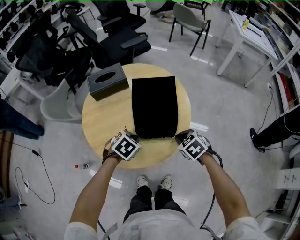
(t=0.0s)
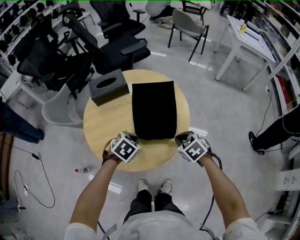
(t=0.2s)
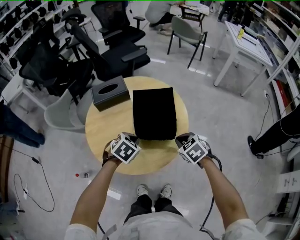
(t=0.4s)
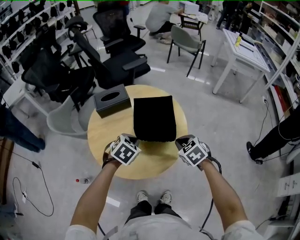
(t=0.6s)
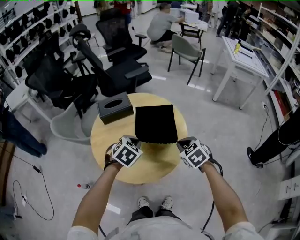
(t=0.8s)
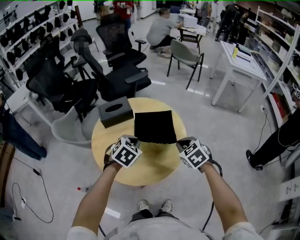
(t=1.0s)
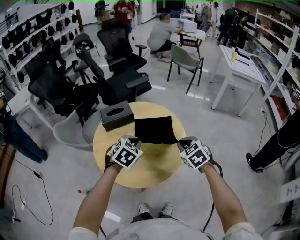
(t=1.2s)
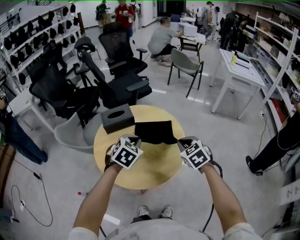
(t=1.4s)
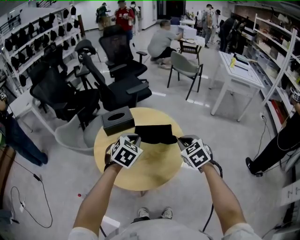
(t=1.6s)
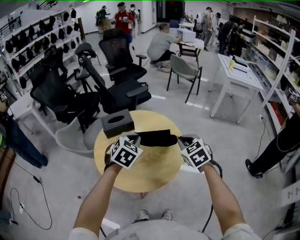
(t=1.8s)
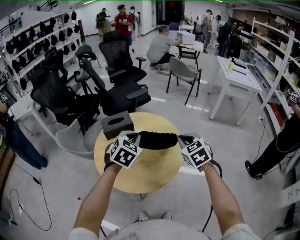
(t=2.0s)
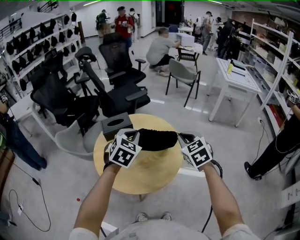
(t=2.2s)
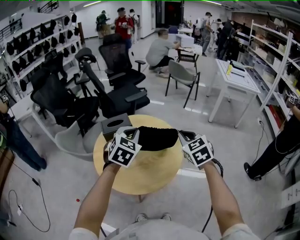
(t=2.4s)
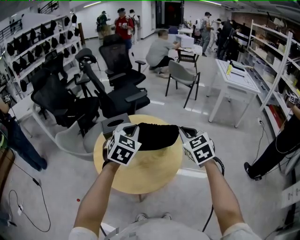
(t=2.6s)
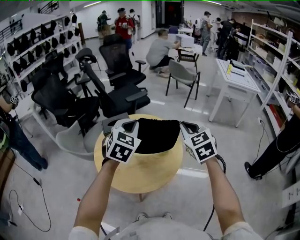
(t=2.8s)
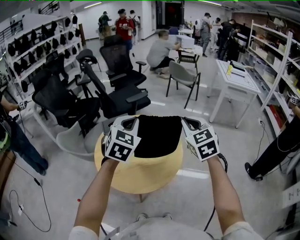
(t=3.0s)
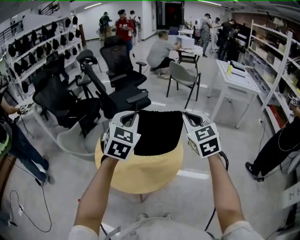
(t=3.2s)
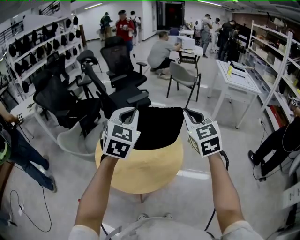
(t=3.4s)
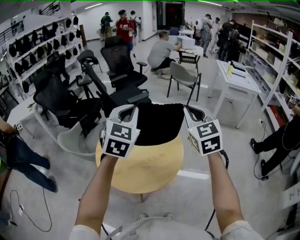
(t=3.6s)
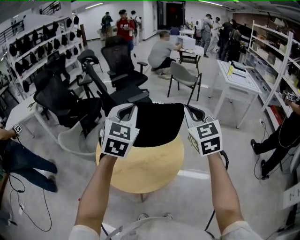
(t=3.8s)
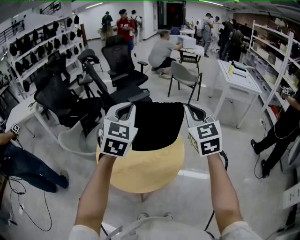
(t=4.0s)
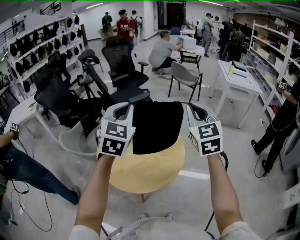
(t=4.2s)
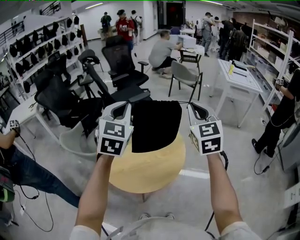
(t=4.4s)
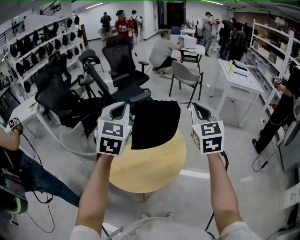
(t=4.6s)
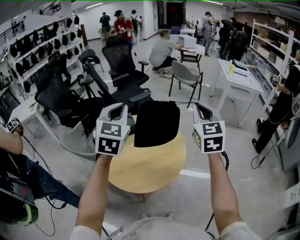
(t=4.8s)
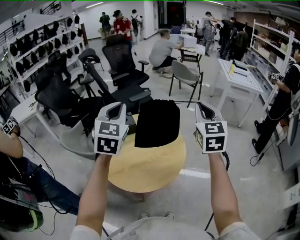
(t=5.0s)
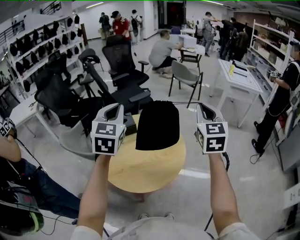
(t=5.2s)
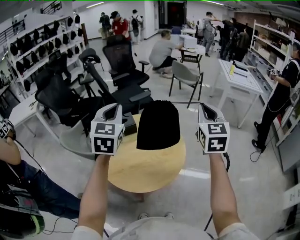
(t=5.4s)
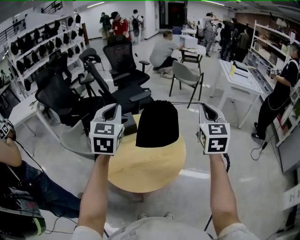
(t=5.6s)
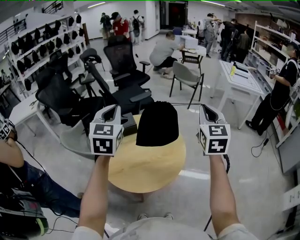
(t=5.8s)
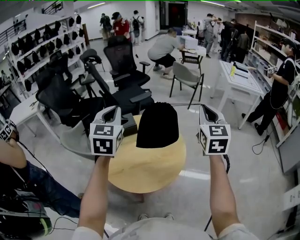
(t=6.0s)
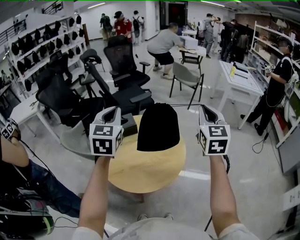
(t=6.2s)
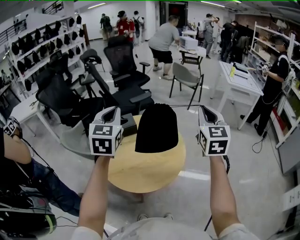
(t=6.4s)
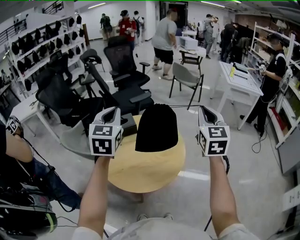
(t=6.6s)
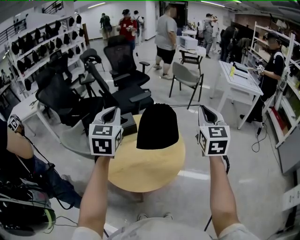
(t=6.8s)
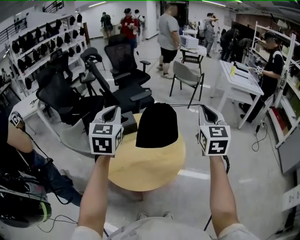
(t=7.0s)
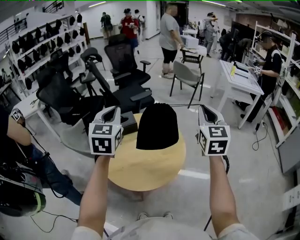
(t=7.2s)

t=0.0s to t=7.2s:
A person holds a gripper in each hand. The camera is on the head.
t=0.0s to t=1.4s: The grippers both shift upward by about 20 cm. The left gripper turns by approximately 30 degrees. The right gripper rotates about 20 degrees.
t=1.4s to t=2.8s: Both grippers move upward, approximately 15 cm. The left gripper swivels some 20 degrees. Meanwhile the right gripper changes its angle by roughly 20 degrees.
t=2.8s to t=4.4s: Both grippers travel together upward, some 10 cm.
t=4.4s to t=5.8s: The left gripper goes some 5 cm to the left.
t=5.8s to t=7.2s: There are only small adjustments of the grippers.

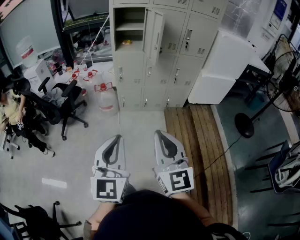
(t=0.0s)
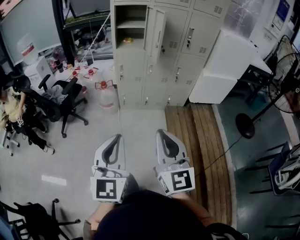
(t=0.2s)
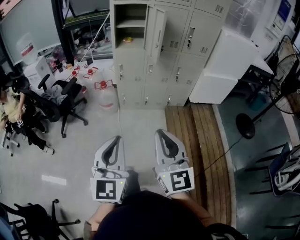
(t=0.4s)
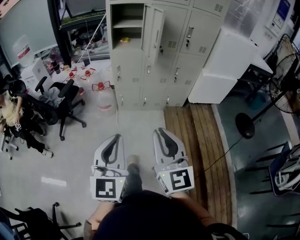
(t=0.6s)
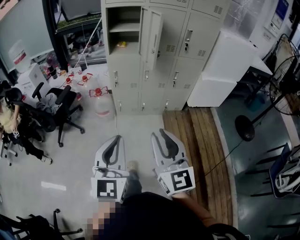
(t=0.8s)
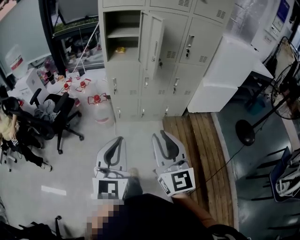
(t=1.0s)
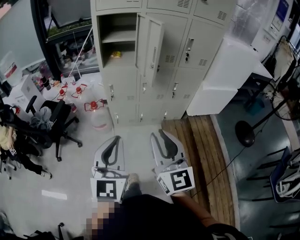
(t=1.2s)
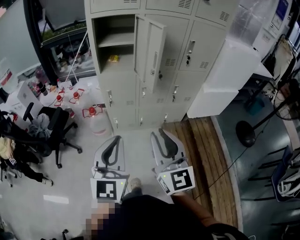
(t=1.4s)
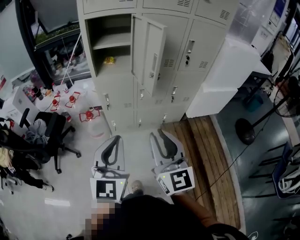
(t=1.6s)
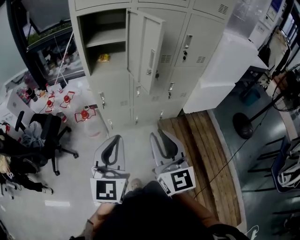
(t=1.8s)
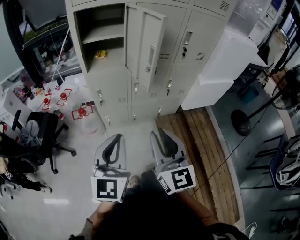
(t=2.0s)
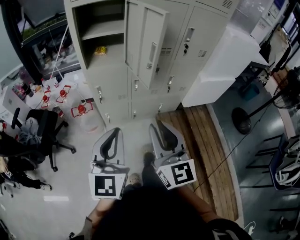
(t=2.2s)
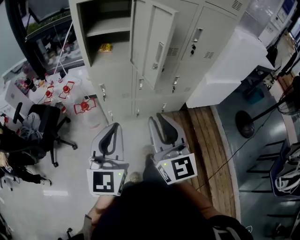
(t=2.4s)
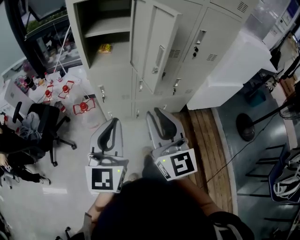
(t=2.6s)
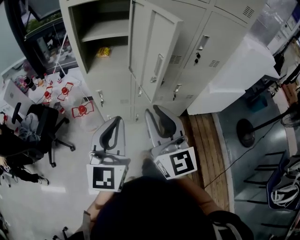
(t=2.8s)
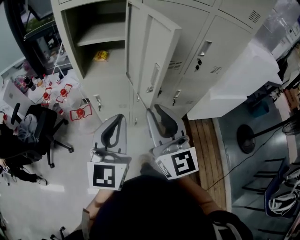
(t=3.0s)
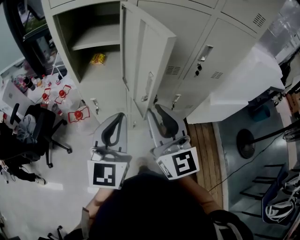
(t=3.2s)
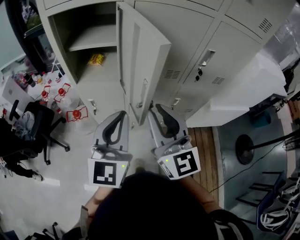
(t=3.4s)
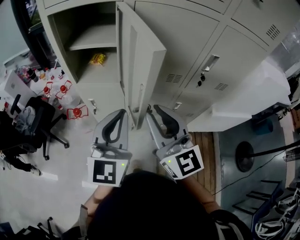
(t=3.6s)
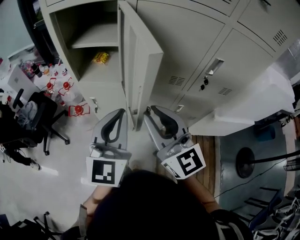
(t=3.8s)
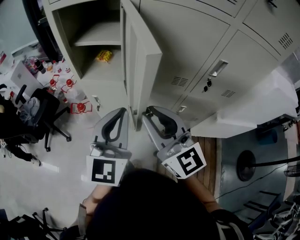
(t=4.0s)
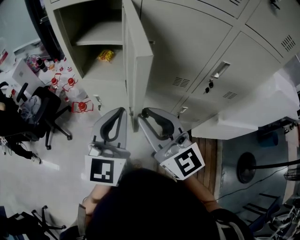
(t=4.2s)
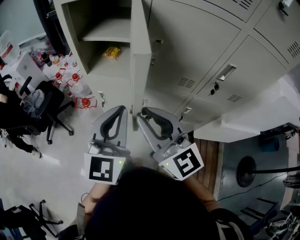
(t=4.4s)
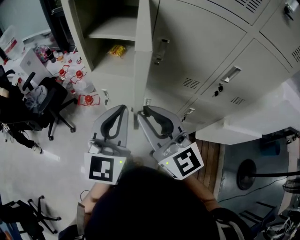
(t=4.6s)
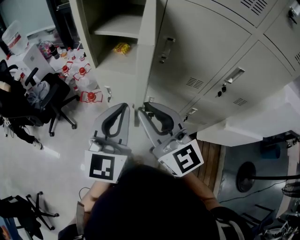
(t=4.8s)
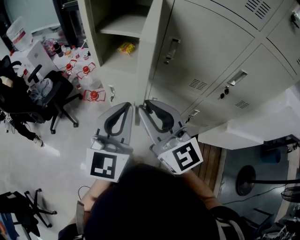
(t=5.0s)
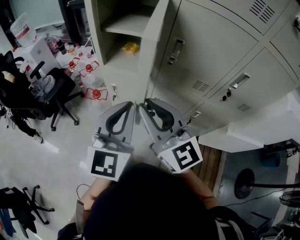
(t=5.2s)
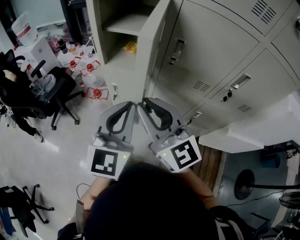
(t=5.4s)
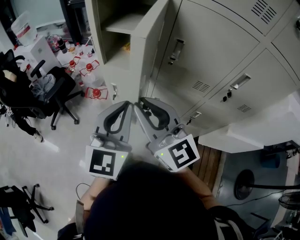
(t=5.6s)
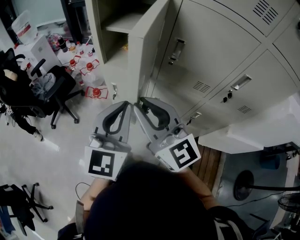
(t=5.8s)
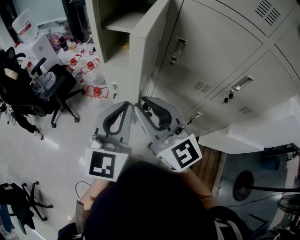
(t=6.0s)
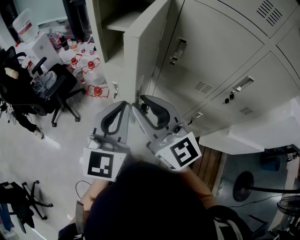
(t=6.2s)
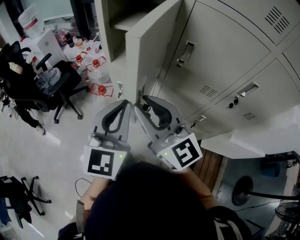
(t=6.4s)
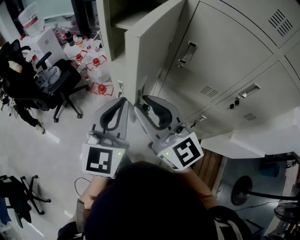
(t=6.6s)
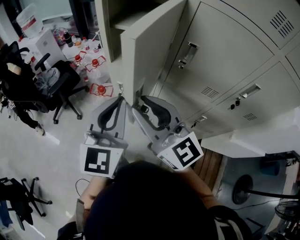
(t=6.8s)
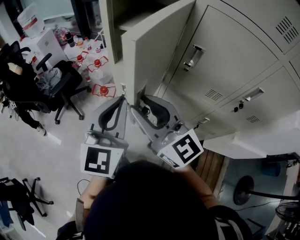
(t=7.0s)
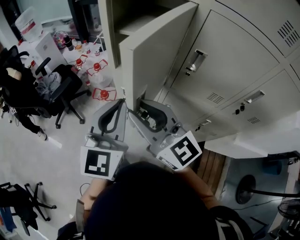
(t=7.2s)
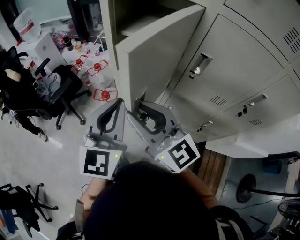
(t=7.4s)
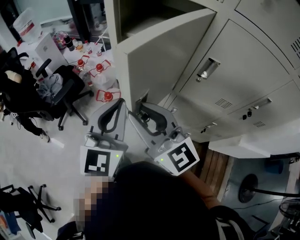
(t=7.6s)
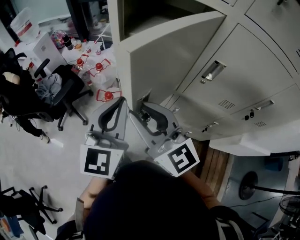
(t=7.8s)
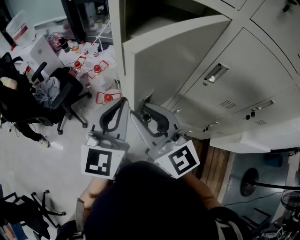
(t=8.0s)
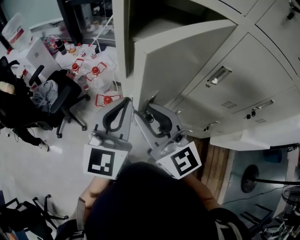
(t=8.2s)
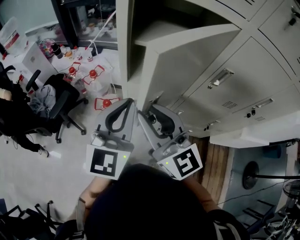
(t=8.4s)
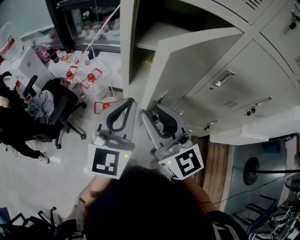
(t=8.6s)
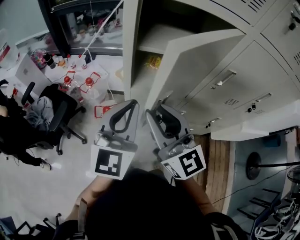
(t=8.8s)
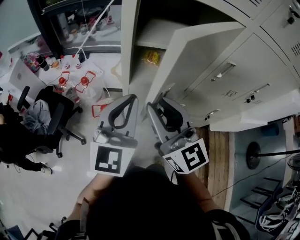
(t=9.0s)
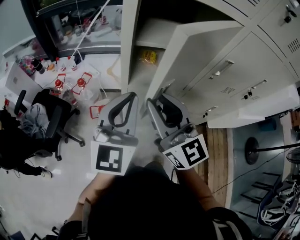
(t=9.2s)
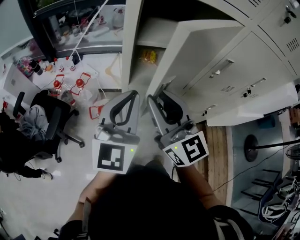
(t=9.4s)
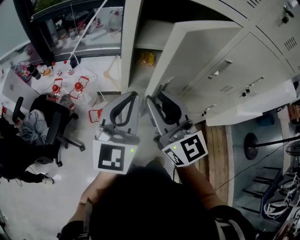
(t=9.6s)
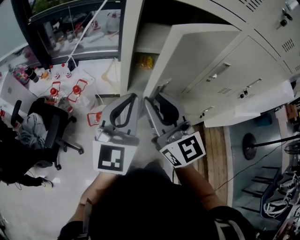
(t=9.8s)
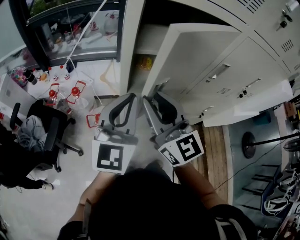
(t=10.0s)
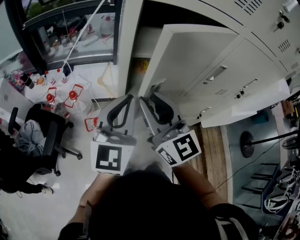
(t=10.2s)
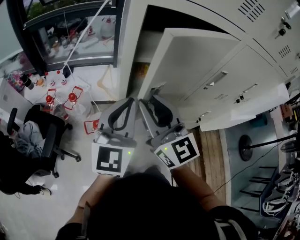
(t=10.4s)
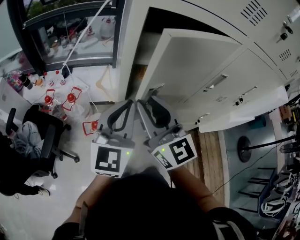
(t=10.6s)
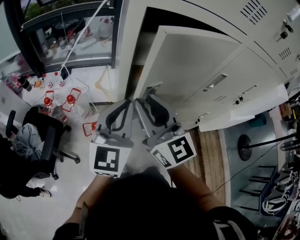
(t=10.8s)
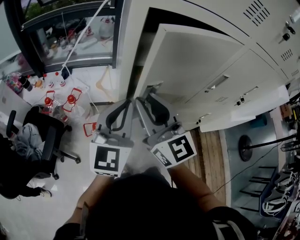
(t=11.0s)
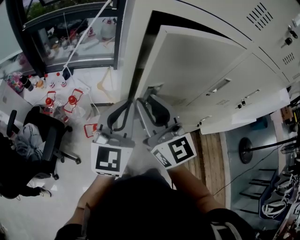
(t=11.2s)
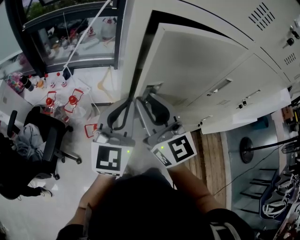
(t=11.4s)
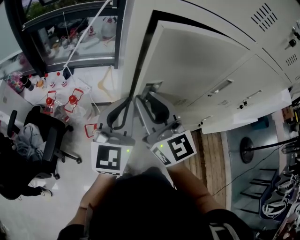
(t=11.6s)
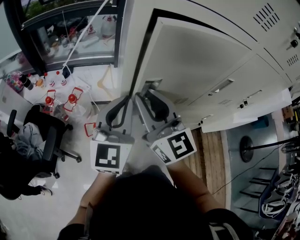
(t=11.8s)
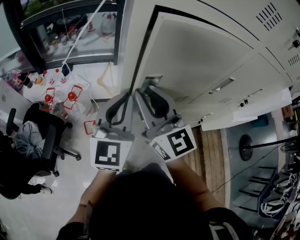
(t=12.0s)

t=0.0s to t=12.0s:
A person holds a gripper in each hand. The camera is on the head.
t=0.0s to t=1.6s: The grippers both shift forward by some 35 cm.
t=1.6s to t=3.0s: The two grippers go about 20 cm forward.
t=3.0s to t=4.4s: The right gripper shifts roughly 10 cm forward, and rotates about 30 degrees; the left gripper shifts approximately 10 cm forward and to the right.
t=4.4s to t=6.0s: The grippers stay close to where they were, moving slightly.
t=6.0s to t=7.6s: The left gripper shifts about 15 cm forward and to the left; the right gripper shifts some 15 cm to the left and forward.
t=7.6s to t=9.0s: Both grippers move forward and to the left, roughly 10 cm. The left gripper rotates about 20 degrees. Meanwhile the right gripper turns by about 30 degrees.
t=9.0s to t=10.4s: The grippers both shift forward by roughly 5 cm.
t=10.4s to t=12.0s: Both grippers move forward, roughly 5 cm.

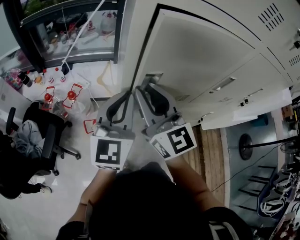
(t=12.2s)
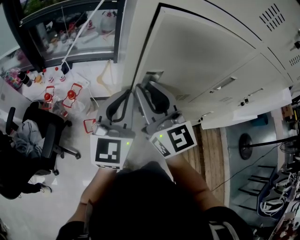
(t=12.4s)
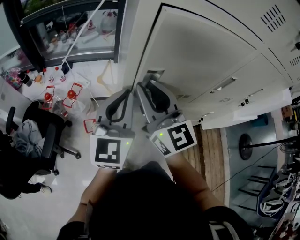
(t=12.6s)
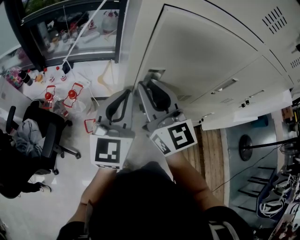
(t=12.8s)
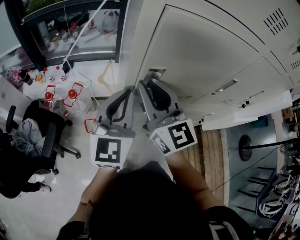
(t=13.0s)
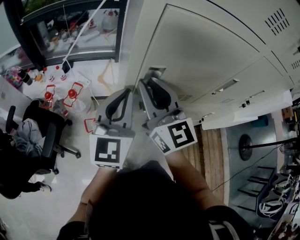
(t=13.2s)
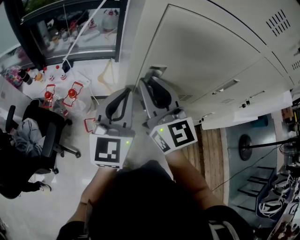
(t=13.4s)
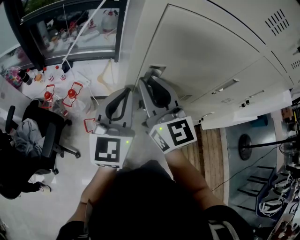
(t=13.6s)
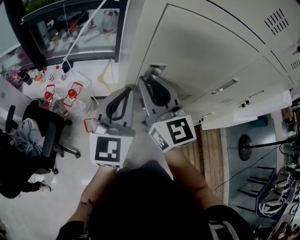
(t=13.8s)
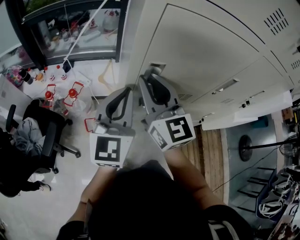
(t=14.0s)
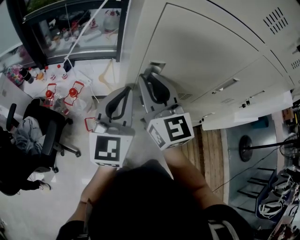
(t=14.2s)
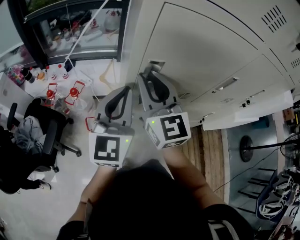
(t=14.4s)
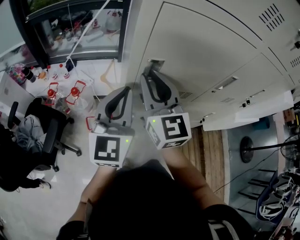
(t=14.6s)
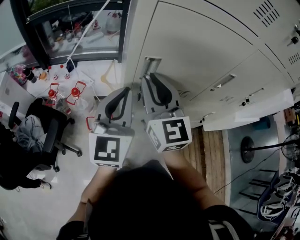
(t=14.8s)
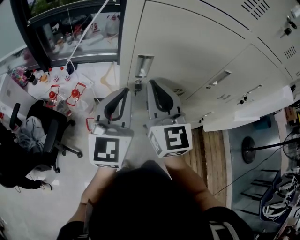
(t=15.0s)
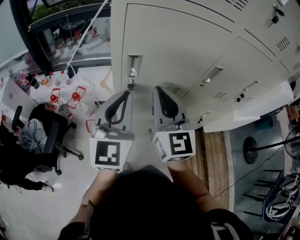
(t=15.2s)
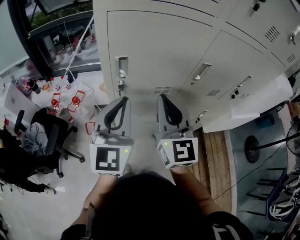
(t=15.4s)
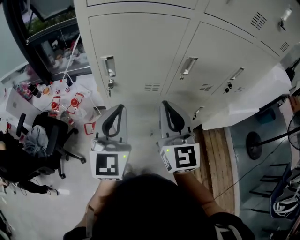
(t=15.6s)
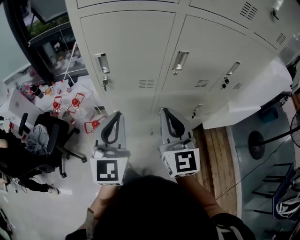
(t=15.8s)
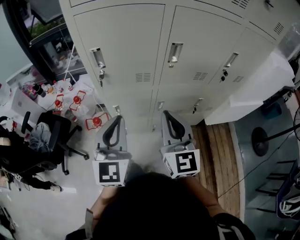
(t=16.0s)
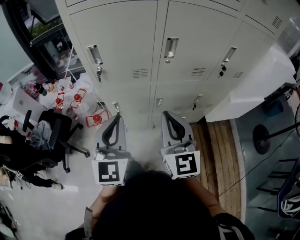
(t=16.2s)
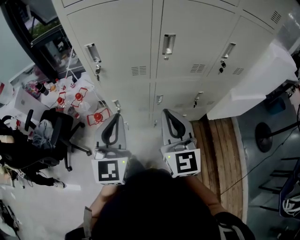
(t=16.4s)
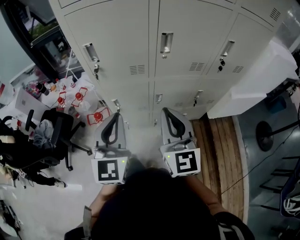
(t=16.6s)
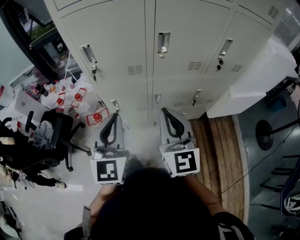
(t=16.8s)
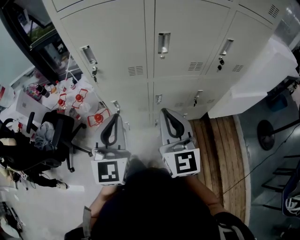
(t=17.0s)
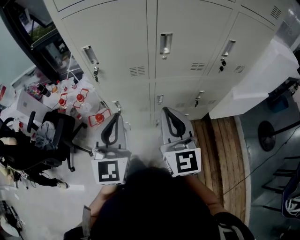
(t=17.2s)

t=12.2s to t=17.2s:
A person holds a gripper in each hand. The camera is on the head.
t=12.2s to t=13.8s: The grippers stay close to where they were, moving slightly.
t=13.8s to t=15.6s: The right gripper moves to the right and backward, some 25 cm; the left gripper heads backward and to the right, covering roughly 15 cm.
t=15.6s to t=17.2s: The two grippers go approximately 10 cm backward and to the right.
